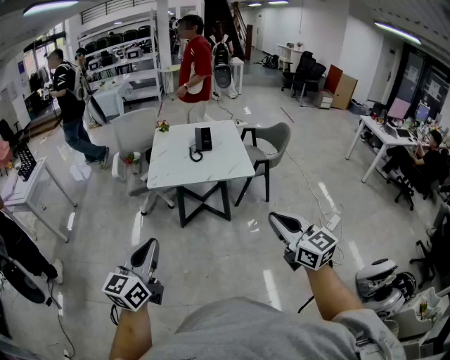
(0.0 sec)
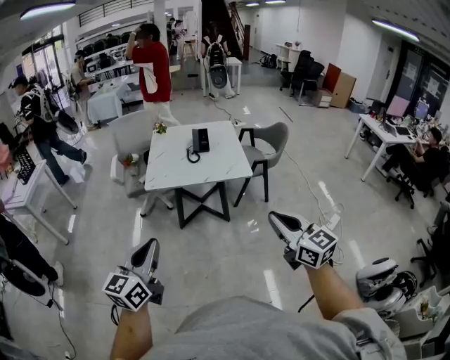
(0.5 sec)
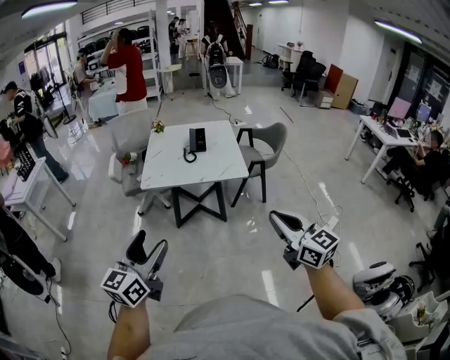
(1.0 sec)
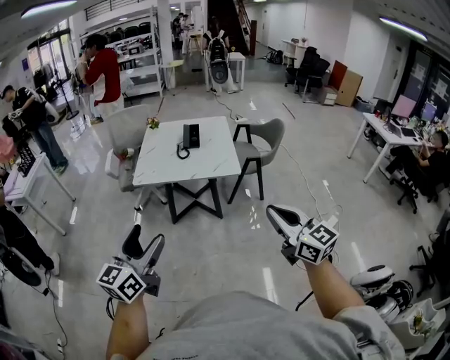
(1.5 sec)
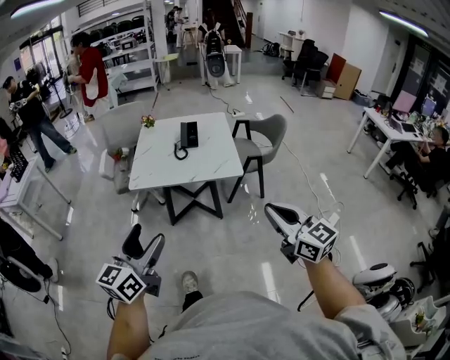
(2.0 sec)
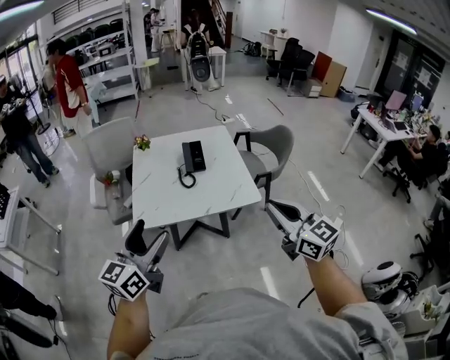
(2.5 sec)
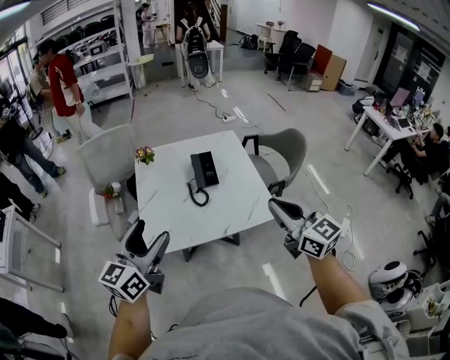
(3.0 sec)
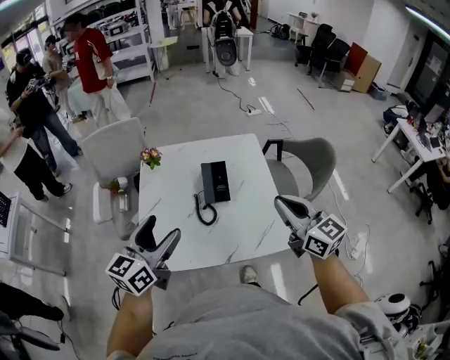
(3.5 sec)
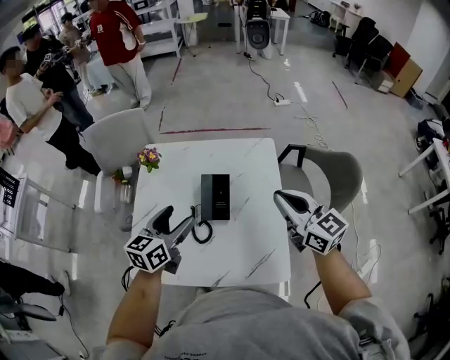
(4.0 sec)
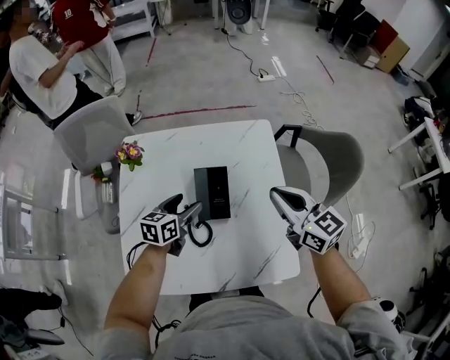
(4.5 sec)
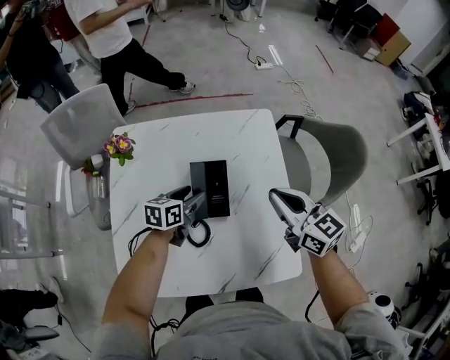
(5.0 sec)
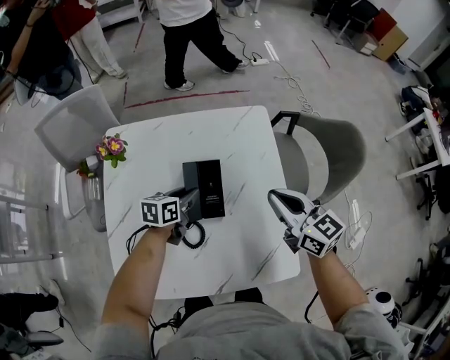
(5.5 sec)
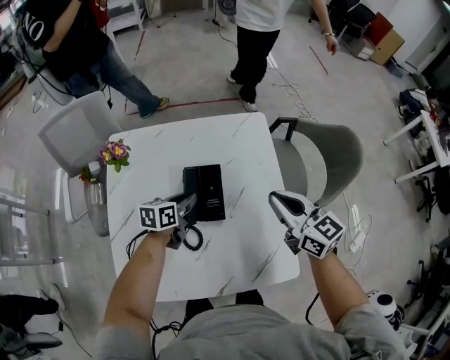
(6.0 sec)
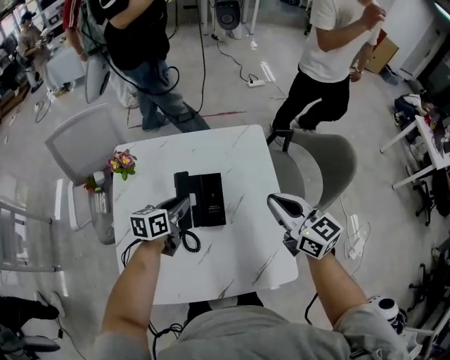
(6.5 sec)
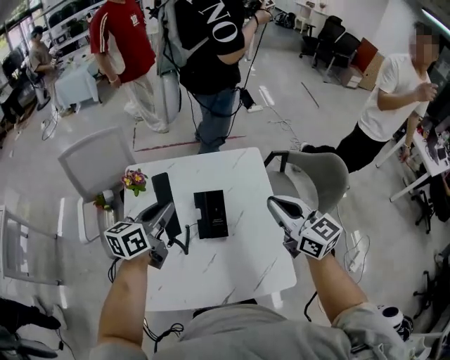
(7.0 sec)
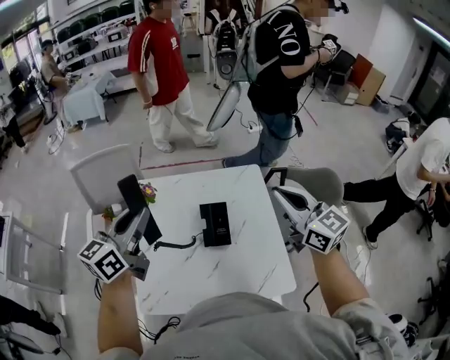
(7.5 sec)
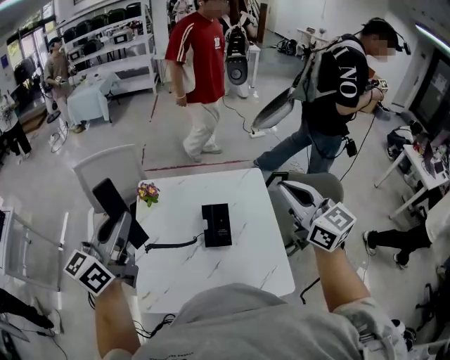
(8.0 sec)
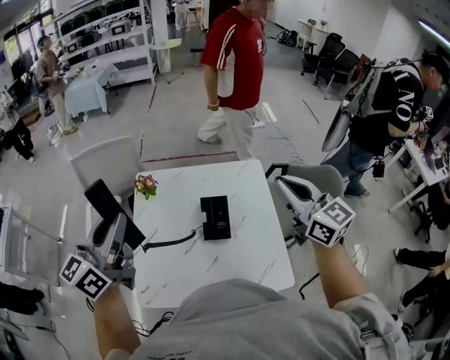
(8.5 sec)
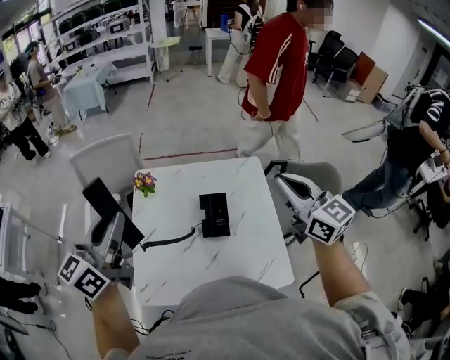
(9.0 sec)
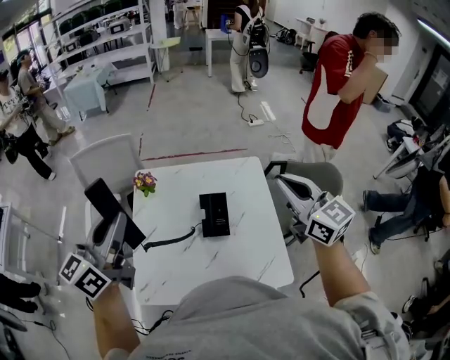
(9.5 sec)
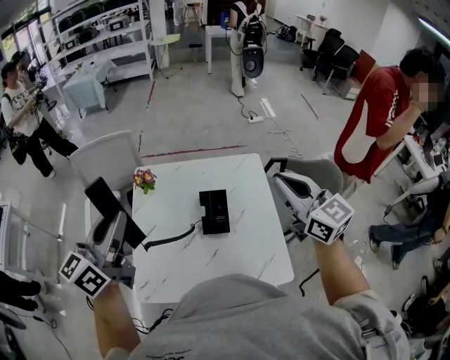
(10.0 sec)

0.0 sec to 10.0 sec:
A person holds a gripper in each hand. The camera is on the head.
0.0 sec to 2.0 sec: The two grippers go about 15 cm to the right and forward. The left gripper opens up.
2.0 sec to 4.0 sec: The pair of grippers is taken forward, some 70 cm.
4.0 sec to 6.0 sec: The left gripper is displaced downward and forward by some 25 cm, swivels approximately 30 degrees, and closes. The right gripper travels downward by about 10 cm.
6.0 sec to 8.0 sec: The right gripper heads upward, covering some 25 cm. The left gripper travels upward and to the left by about 50 cm, and tilts its fingers approximately 40 degrees upward.
8.0 sec to 10.0 sec: The grippers make only small movements.

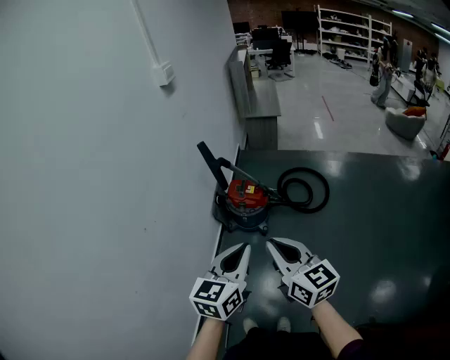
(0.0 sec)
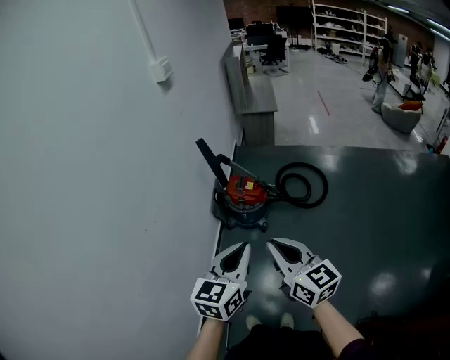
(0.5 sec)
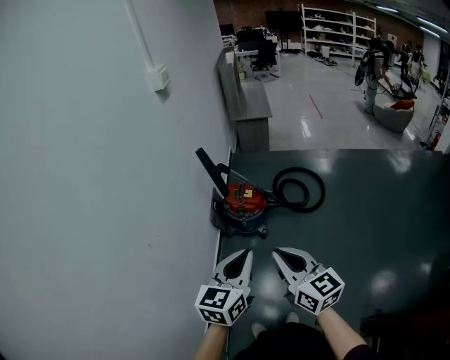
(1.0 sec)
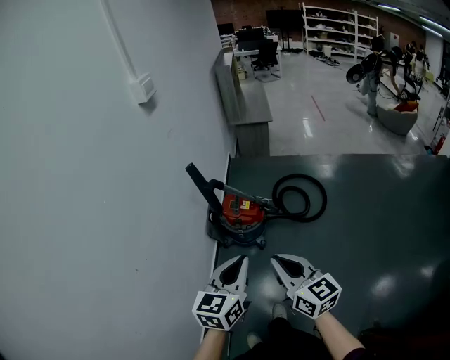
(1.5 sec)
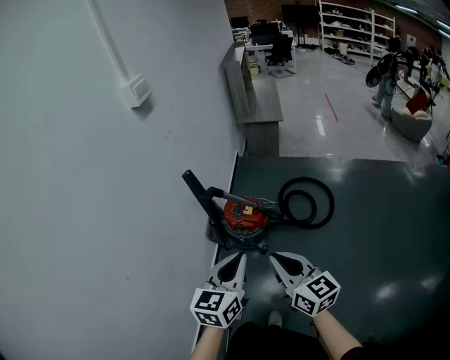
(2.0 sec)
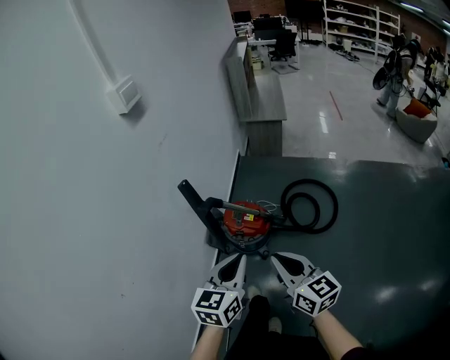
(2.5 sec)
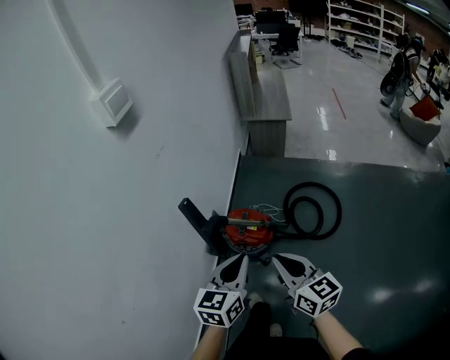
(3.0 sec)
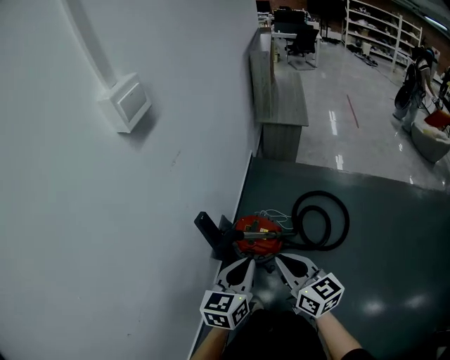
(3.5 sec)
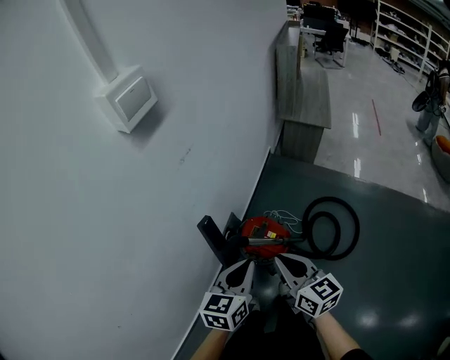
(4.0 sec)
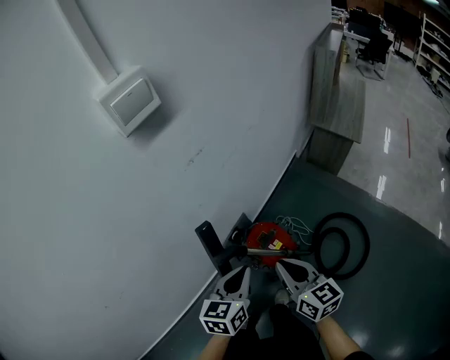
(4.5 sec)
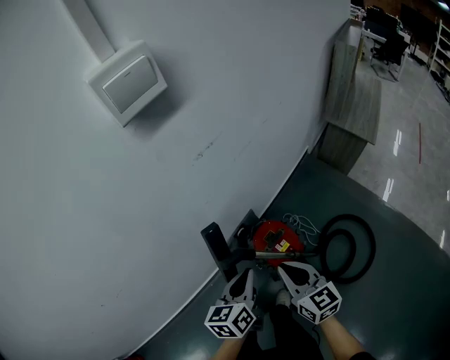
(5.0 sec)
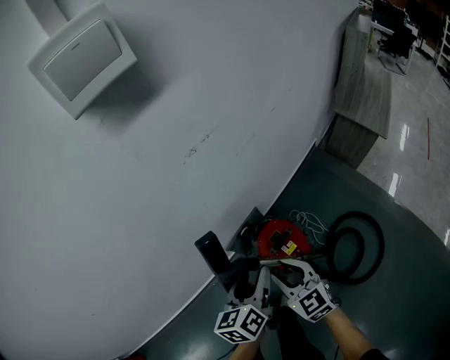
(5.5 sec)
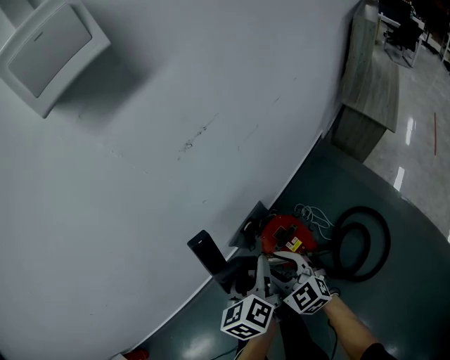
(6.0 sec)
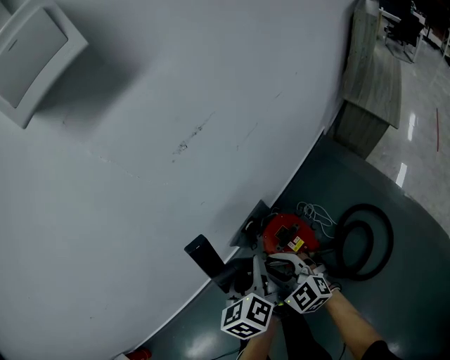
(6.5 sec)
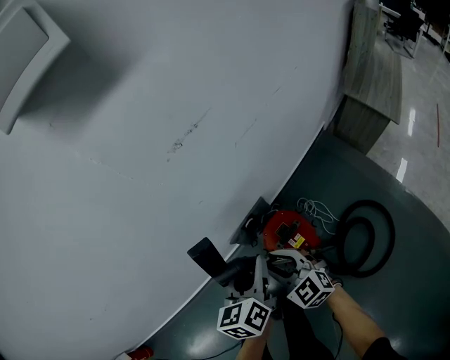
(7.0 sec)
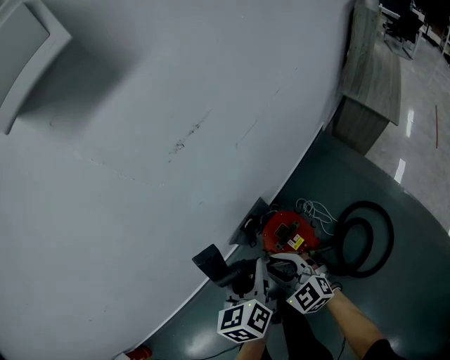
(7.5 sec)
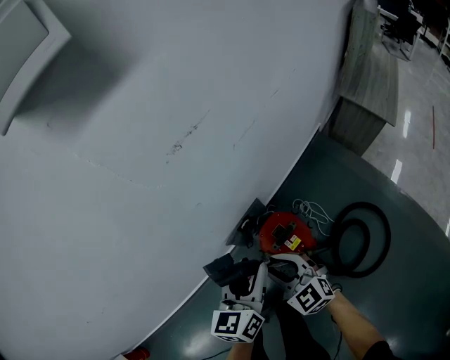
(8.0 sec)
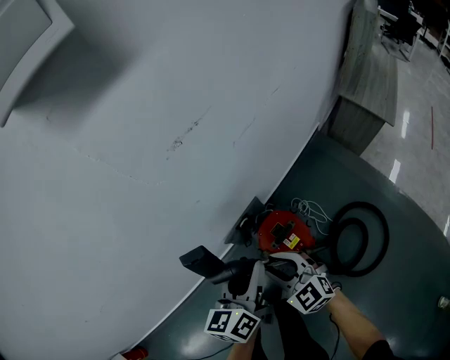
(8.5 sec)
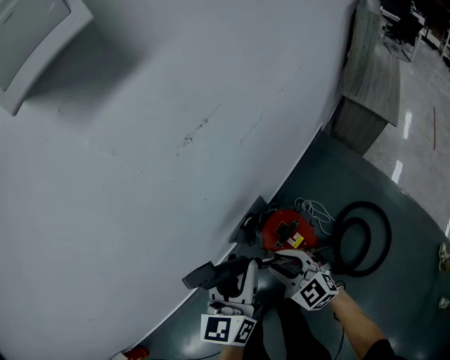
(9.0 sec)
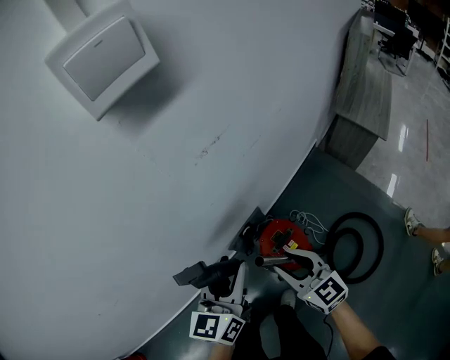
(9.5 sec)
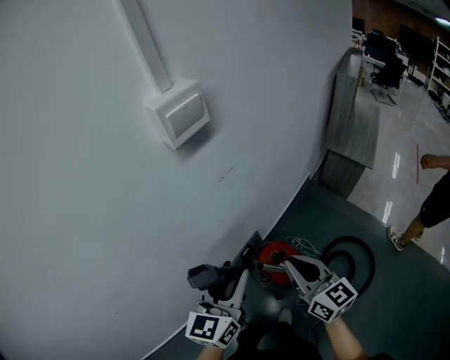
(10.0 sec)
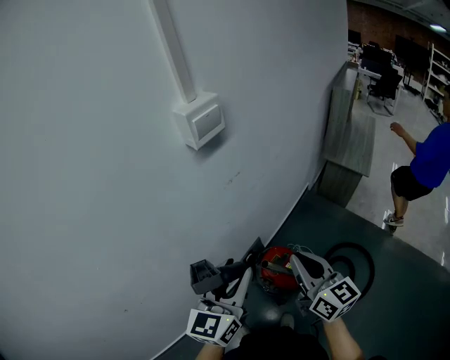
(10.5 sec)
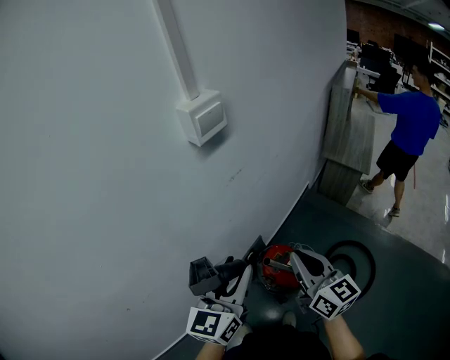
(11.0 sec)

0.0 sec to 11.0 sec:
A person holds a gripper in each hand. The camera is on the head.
0.0 sec to 2.0 sec: Both grippers move forward, approximately 20 cm.
2.0 sec to 3.5 sec: The grippers both shift forward by some 25 cm.
3.5 sec to 5.5 sec: The two grippers go some 15 cm downward. The left gripper turns by approximately 60 degrees, and opens up. Meanwhile the right gripper turns by approximately 50 degrees, and opens up.
5.5 sec to 7.5 sec: The right gripper moves downward, roughly 5 cm.
7.5 sec to 9.0 sec: The left gripper shifts about 5 cm upward, and rotates about 20 degrees.
9.0 sec to 11.0 sec: The grippers both shift upward by roughly 25 cm. The right gripper rotates roughly 50 degrees, and closes its fingers.

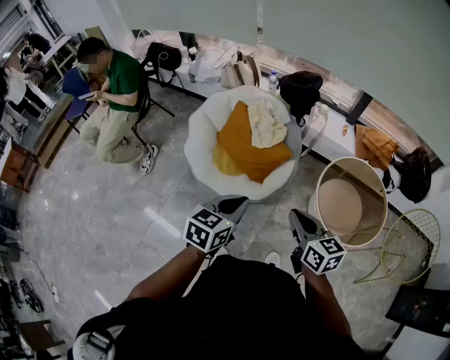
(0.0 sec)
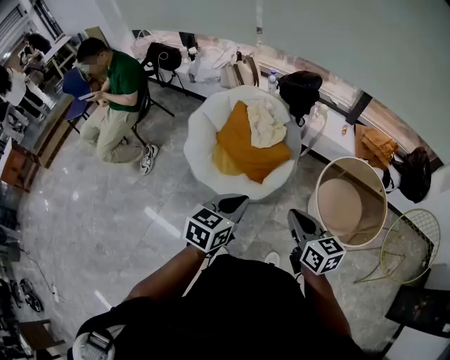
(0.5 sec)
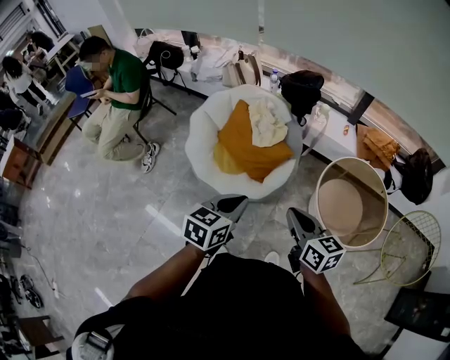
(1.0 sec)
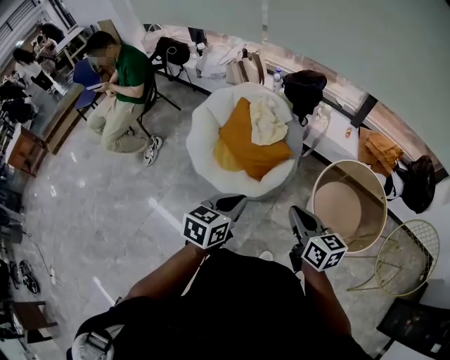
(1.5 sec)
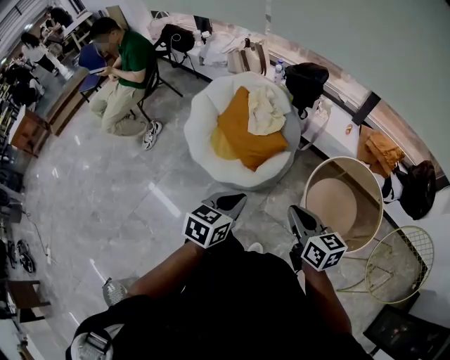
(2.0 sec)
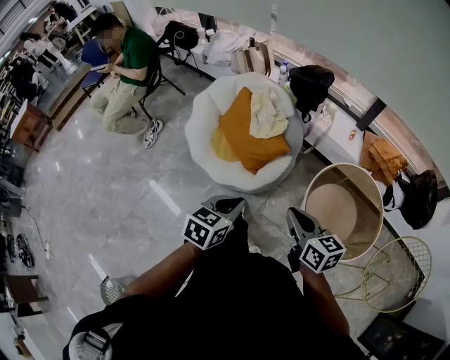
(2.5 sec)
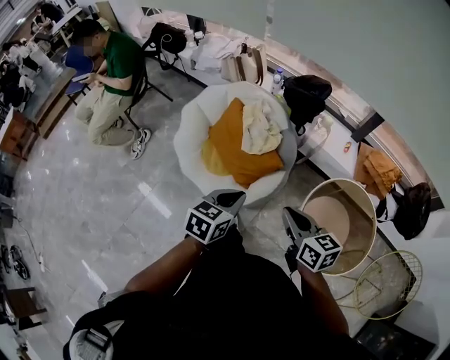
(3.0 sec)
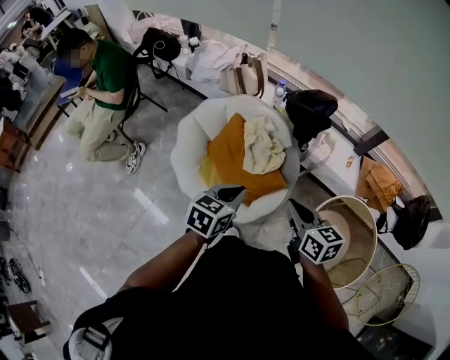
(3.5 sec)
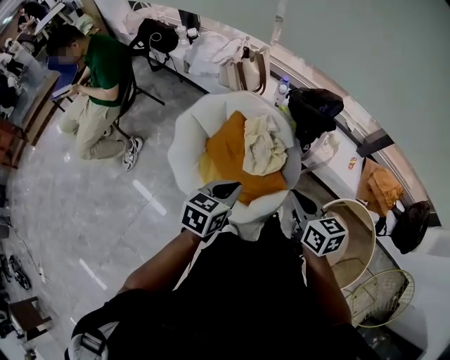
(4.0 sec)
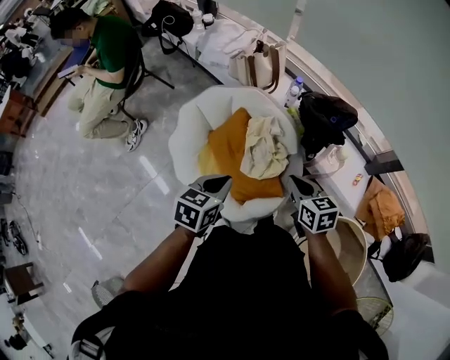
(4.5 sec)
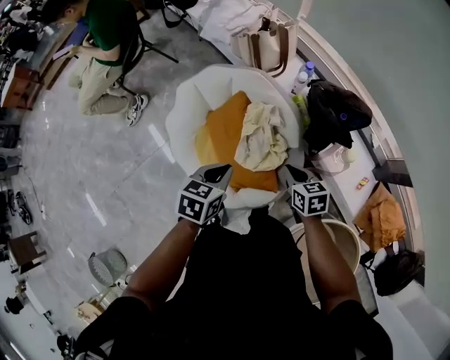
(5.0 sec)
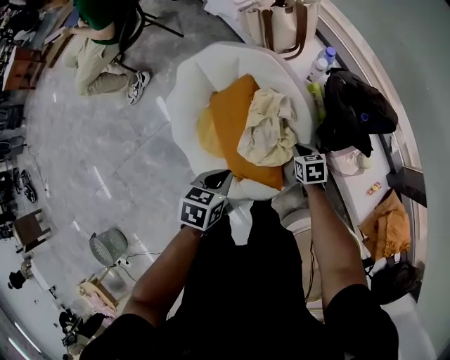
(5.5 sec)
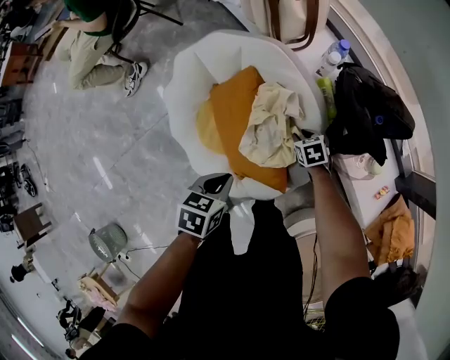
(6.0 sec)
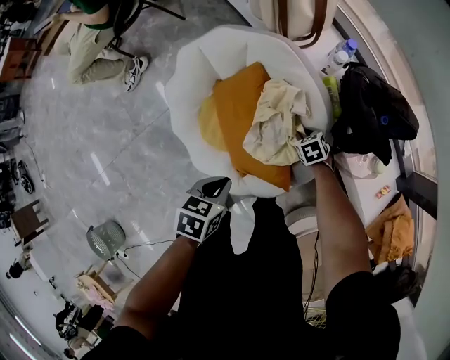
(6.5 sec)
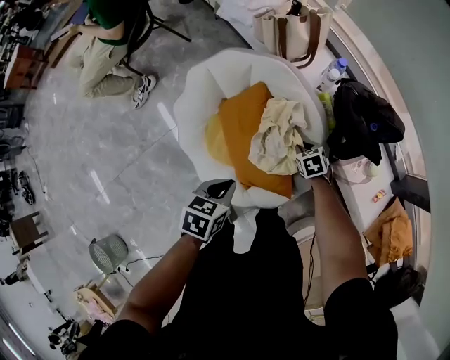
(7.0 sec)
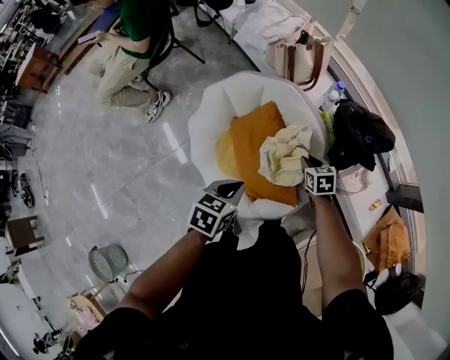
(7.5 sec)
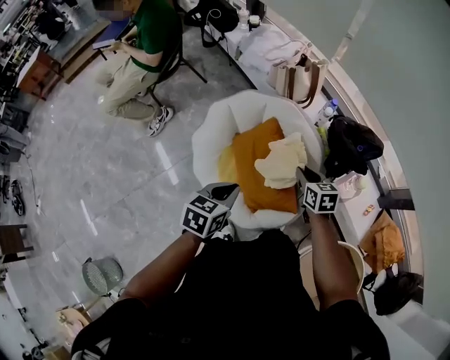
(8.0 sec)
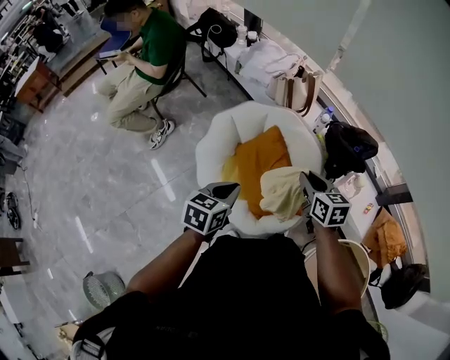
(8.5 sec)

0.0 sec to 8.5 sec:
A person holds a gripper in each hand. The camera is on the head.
0.0 sec to 2.0 sec: Both grippers travel together to the right, about 10 cm.
2.0 sec to 4.0 sec: The grippers both shift forward by approximately 40 cm.
4.0 sec to 6.5 sec: The left gripper travels downward and forward by some 25 cm, and rotates about 40 degrees. Meanwhile the right gripper goes some 60 cm downward and forward, and tips its fingers downward by some 40 degrees.
6.5 sec to 8.5 sec: The right gripper goes some 40 cm upward, and angles its fingers upward, by about 40 degrees, while the left gripper is displaced upward and to the left by some 25 cm, and changes its angle by about 30 degrees.
